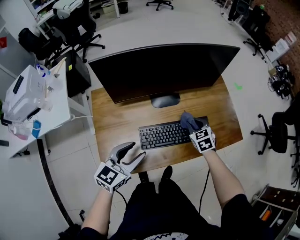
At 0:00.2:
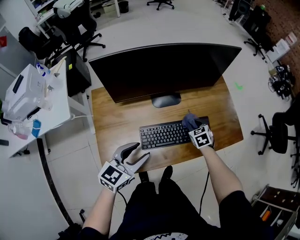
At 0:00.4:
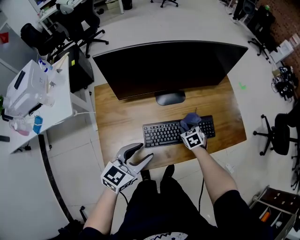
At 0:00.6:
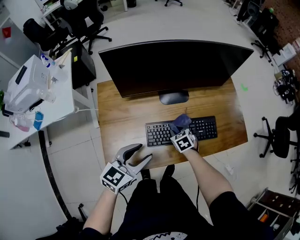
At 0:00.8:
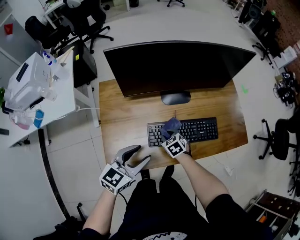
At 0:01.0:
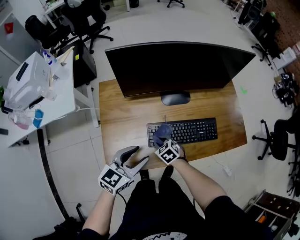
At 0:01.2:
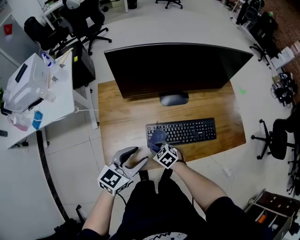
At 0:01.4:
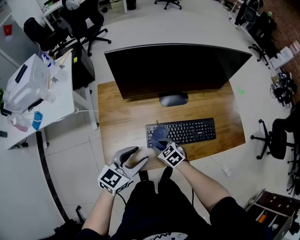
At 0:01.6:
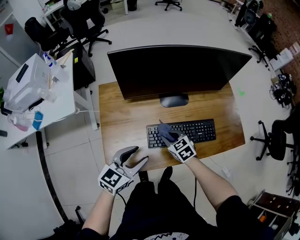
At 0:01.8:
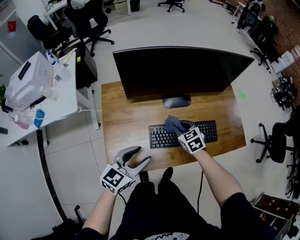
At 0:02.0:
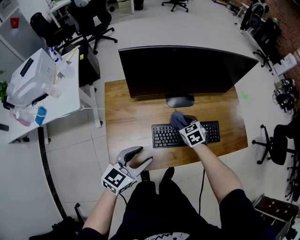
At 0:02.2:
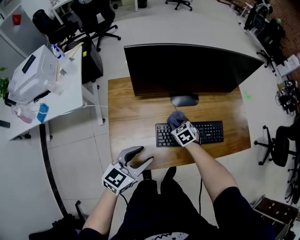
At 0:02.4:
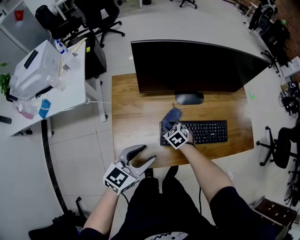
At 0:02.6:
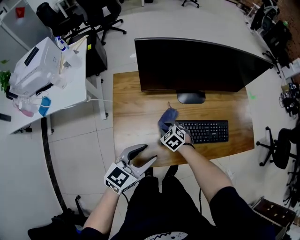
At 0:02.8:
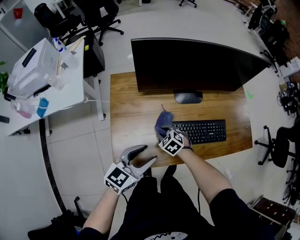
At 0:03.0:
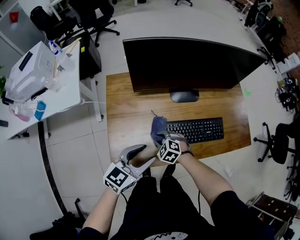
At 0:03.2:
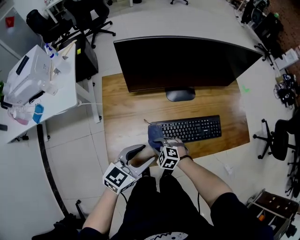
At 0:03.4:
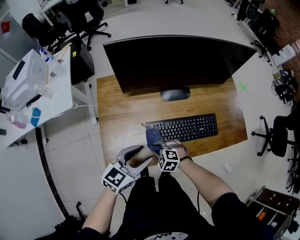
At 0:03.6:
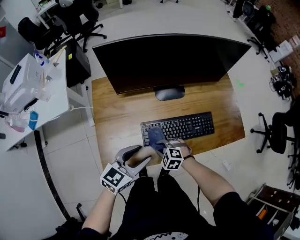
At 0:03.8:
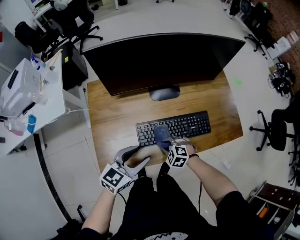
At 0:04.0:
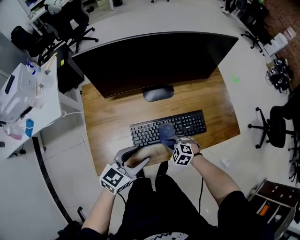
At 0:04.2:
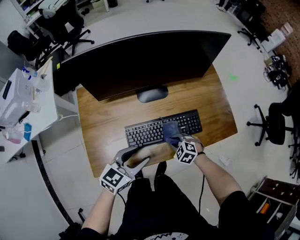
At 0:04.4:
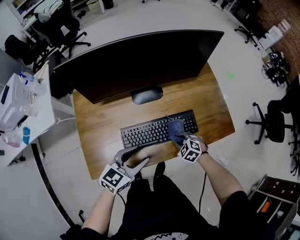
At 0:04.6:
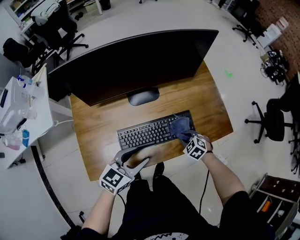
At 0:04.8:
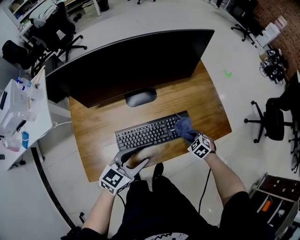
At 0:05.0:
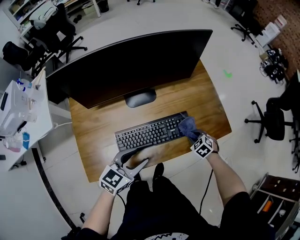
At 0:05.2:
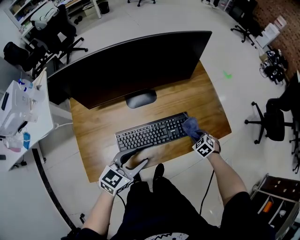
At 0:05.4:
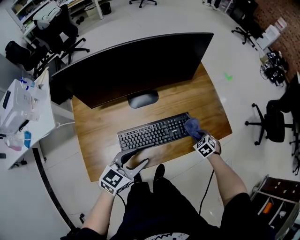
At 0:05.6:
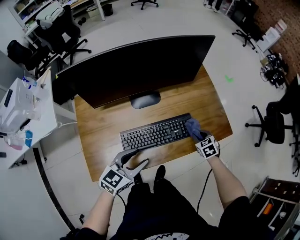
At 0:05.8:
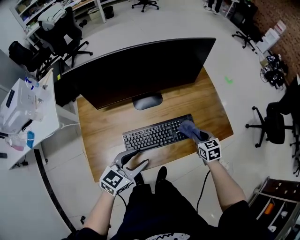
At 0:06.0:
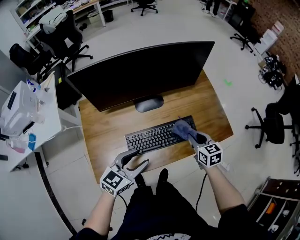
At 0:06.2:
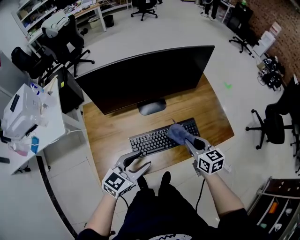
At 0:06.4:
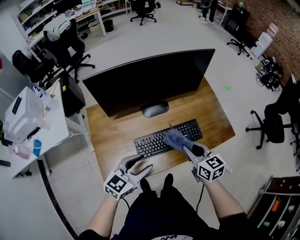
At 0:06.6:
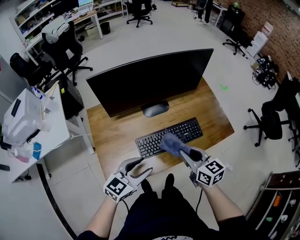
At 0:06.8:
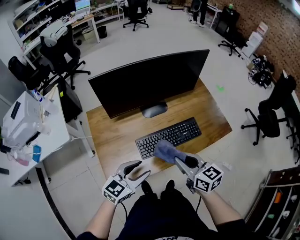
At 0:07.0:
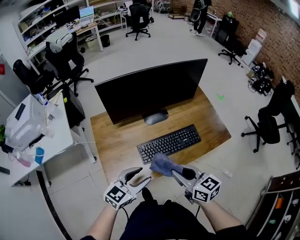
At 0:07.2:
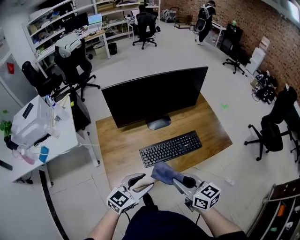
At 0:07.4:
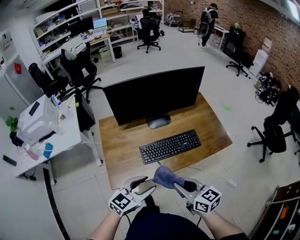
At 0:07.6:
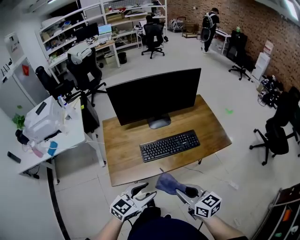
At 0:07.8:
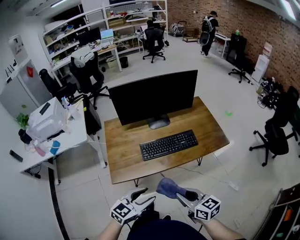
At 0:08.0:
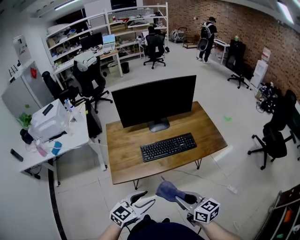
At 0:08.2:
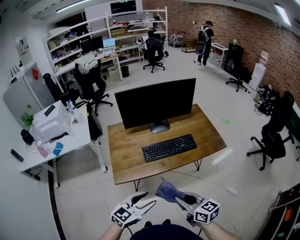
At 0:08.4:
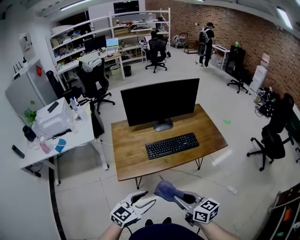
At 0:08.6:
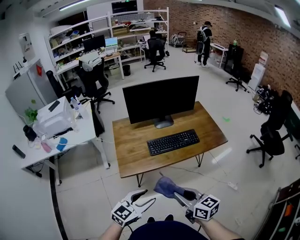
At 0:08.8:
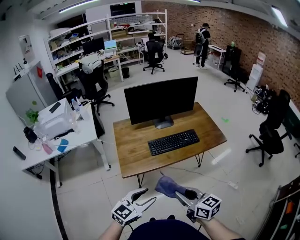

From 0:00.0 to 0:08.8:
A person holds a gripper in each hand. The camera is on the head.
From 0:00.0 to 0:01.4: The right gripper moves roughly 25 cm, and rotates roughly 30 degrees.
From 0:01.4 to 0:03.0: The right gripper swivels approximately 30 degrees.
From 0:03.0 to 0:04.4: The right gripper shifts approximately 30 cm to the right; the left gripper travels to the right by some 15 cm.
From 0:04.4 to 0:05.8: The right gripper goes roughly 15 cm upward, to the right and forward, and rolls clockwise, seen from behind, by about 40 degrees.
From 0:05.8 to 0:07.4: The right gripper goes roughly 40 cm backward, upward and to the left, and turns by roughly 40 degrees. The left gripper travels backward by some 15 cm.
From 0:07.4 to 0:08.8: The two grippers go some 20 cm backward.

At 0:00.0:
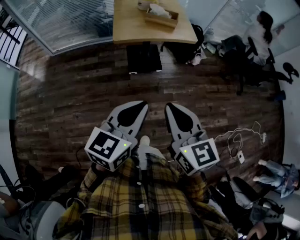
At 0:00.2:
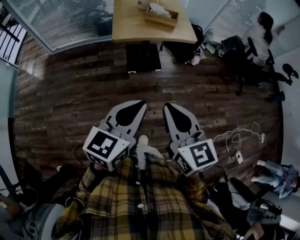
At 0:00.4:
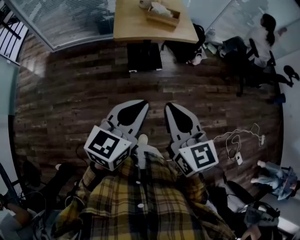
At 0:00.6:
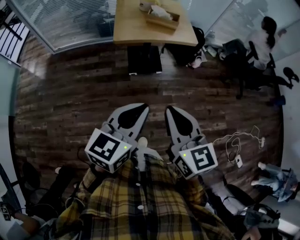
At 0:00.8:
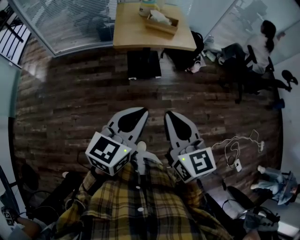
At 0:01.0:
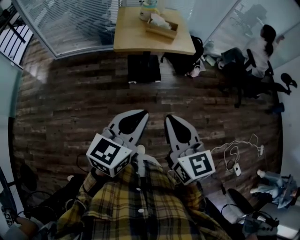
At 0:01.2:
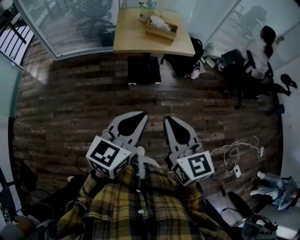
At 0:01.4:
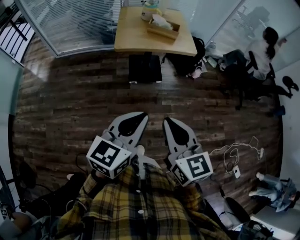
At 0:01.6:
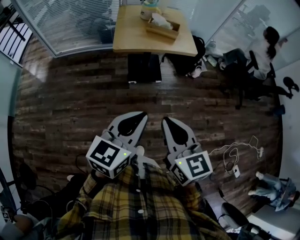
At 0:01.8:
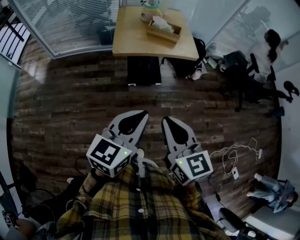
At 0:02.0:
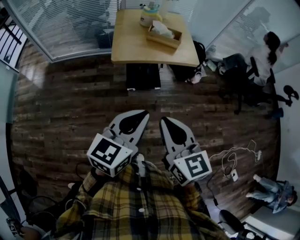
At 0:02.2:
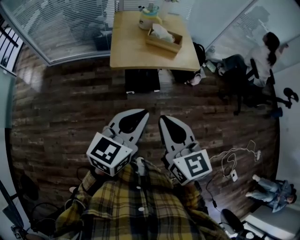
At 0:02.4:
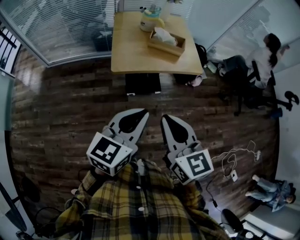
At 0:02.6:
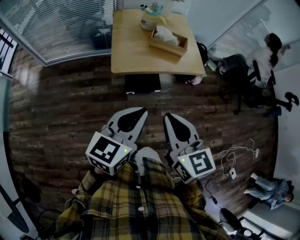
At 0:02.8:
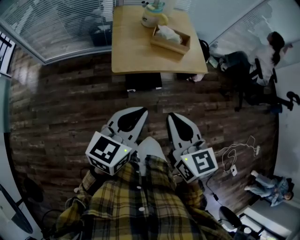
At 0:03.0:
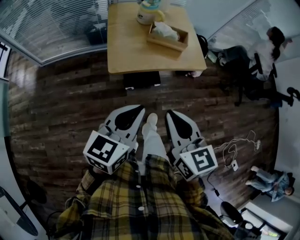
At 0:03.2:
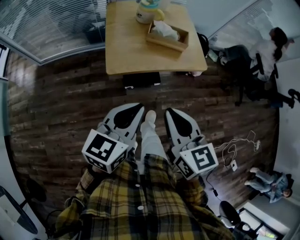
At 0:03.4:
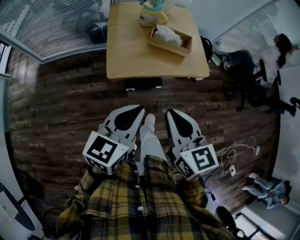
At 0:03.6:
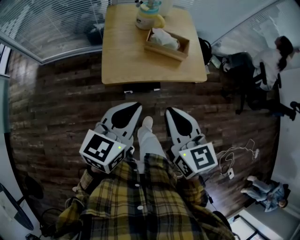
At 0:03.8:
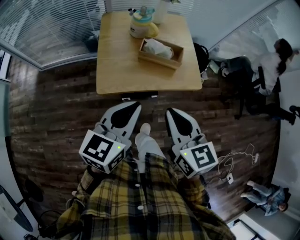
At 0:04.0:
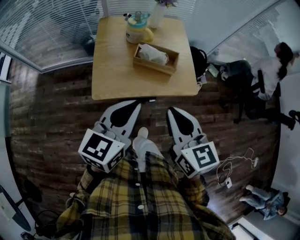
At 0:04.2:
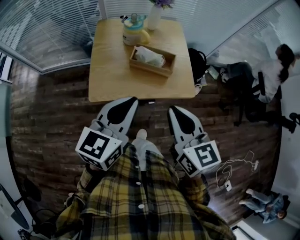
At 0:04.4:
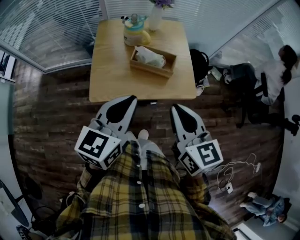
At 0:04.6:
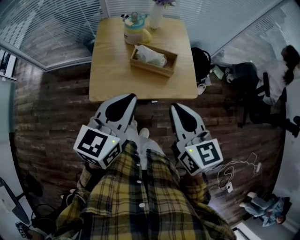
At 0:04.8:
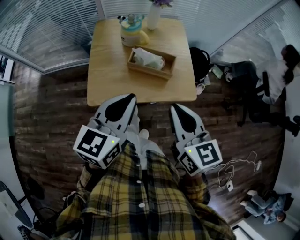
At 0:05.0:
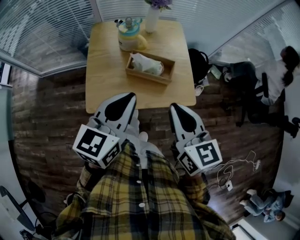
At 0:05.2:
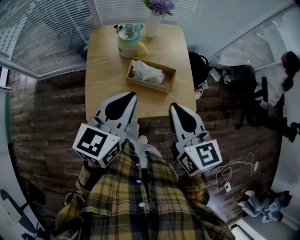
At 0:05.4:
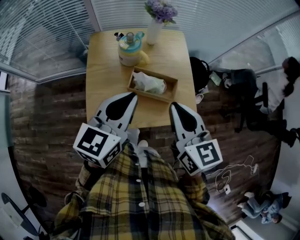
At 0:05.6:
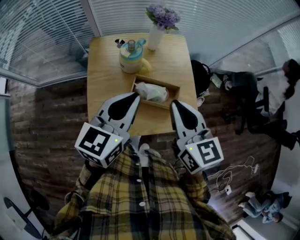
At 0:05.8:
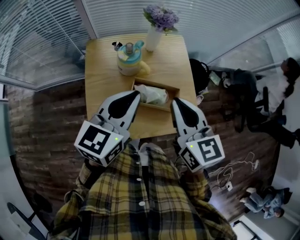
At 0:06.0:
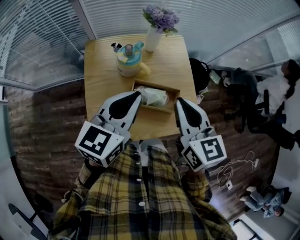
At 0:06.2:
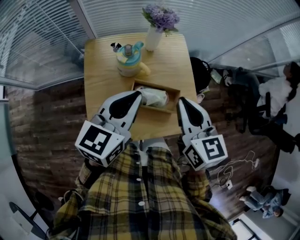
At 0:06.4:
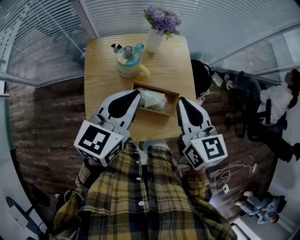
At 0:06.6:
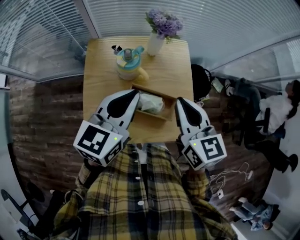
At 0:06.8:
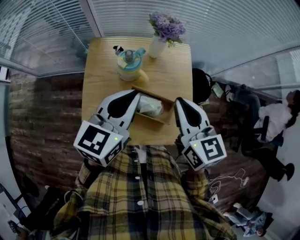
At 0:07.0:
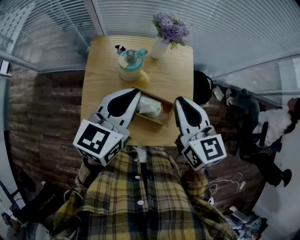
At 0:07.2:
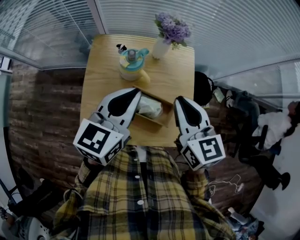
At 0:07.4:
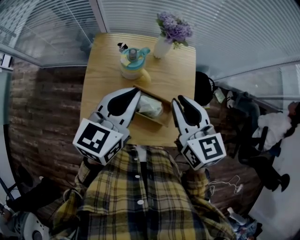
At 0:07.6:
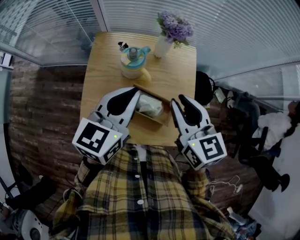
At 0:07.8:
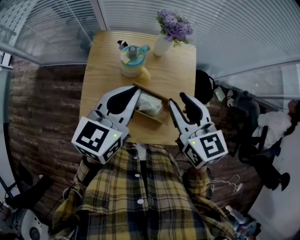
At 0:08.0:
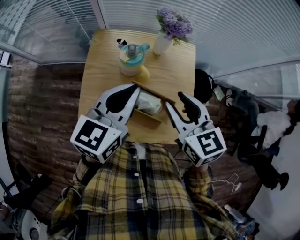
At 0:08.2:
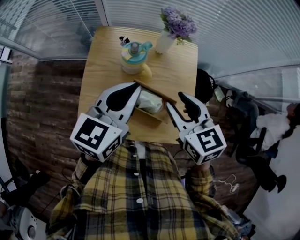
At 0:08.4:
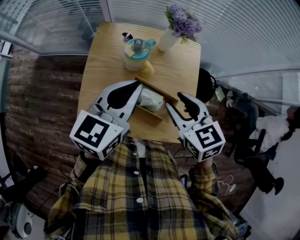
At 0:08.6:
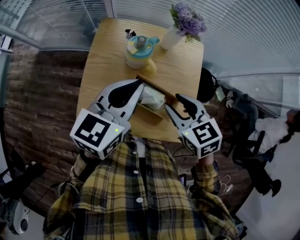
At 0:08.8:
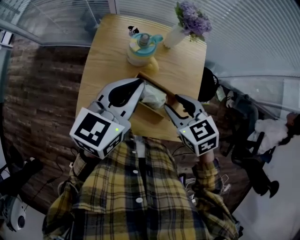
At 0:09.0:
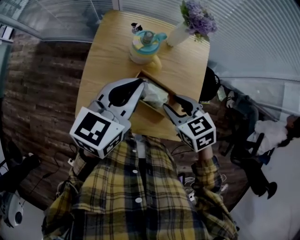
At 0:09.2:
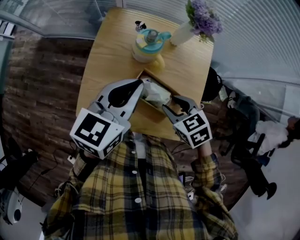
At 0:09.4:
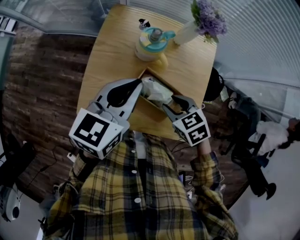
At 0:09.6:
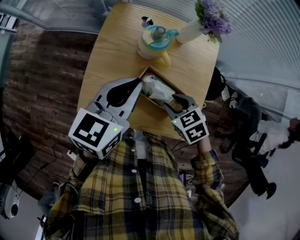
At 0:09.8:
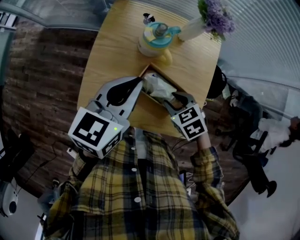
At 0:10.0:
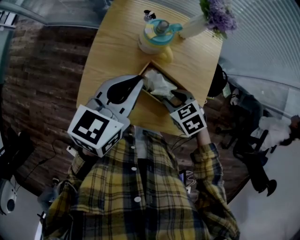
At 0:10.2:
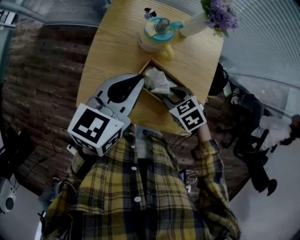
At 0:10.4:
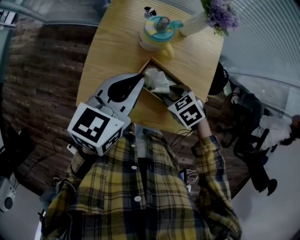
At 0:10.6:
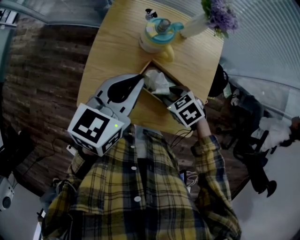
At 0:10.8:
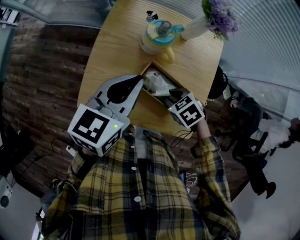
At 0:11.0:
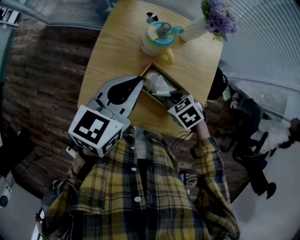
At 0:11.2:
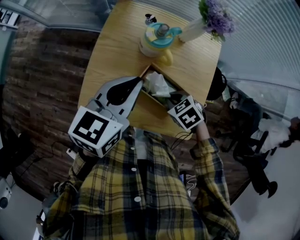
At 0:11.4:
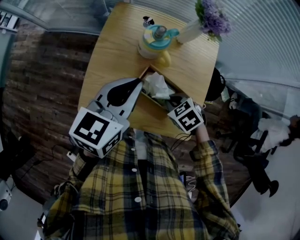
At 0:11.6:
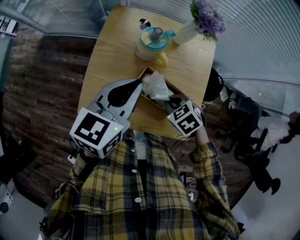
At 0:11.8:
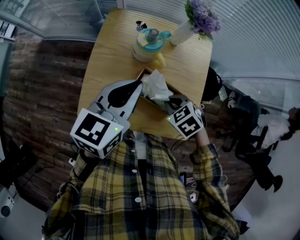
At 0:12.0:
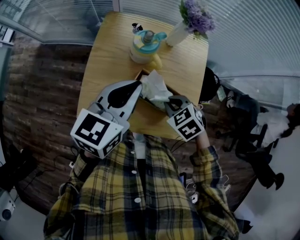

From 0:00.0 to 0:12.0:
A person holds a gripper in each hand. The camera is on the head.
From 0:00.0 to 0:01.6: The grippers make only small movements.
From 0:01.6 to 0:03.0: The two grippers go approximately 25 cm forward.
From 0:03.0 to 0:04.4: Both grippers move forward and to the right, approximately 20 cm.
From 0:04.4 to 0:06.0: Both grippers travel together forward, some 25 cm.
From 0:06.0 to 0:07.6: The right gripper goes approximately 5 cm forward.
From 0:07.6 to 0:09.0: The right gripper shifts about 15 cm downward, and swivels about 40 degrees.
From 0:09.0 to 0:10.4: The right gripper shifts approximately 10 cm downward, and rotates about 20 degrees.
From 0:10.4 to 0:12.0: The right gripper goes some 5 cm upward, and closes up.

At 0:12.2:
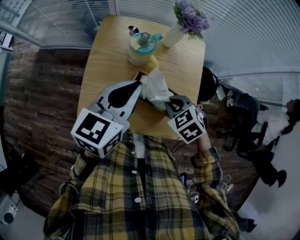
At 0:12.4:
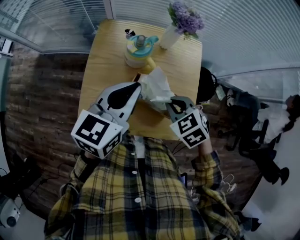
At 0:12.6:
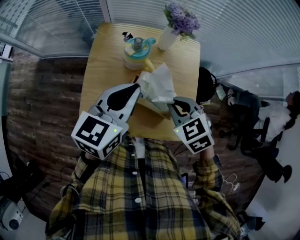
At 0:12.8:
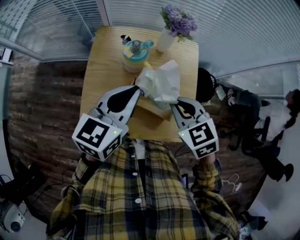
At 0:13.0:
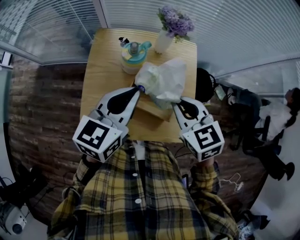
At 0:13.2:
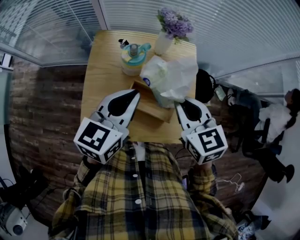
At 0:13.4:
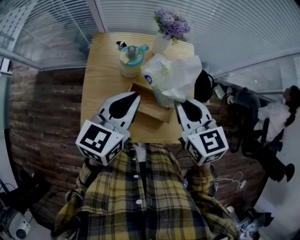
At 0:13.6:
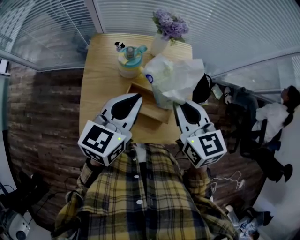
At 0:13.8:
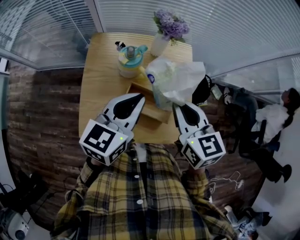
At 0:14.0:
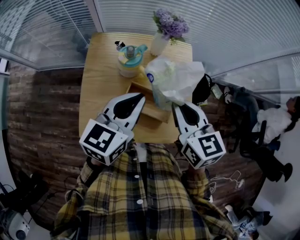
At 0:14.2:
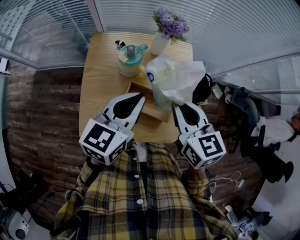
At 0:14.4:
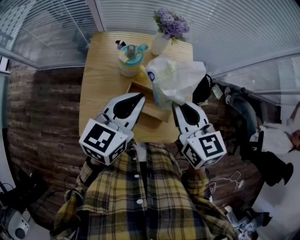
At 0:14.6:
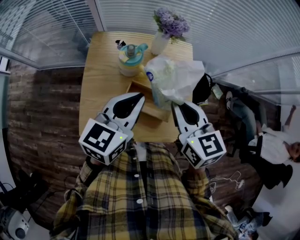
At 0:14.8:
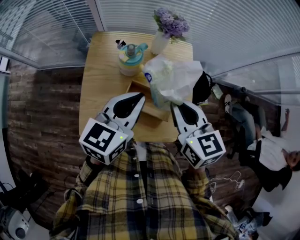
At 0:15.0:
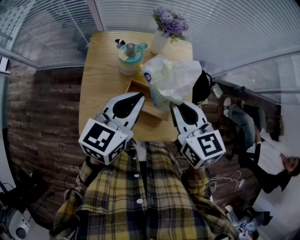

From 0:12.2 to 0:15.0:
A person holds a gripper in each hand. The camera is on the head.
From 0:12.2 to 0:13.6: The right gripper shifts some 15 cm upward, and tilts its fingers roughly 40 degrees upward.
From 0:13.6 to 0:15.0: The grippers make only small movements.
